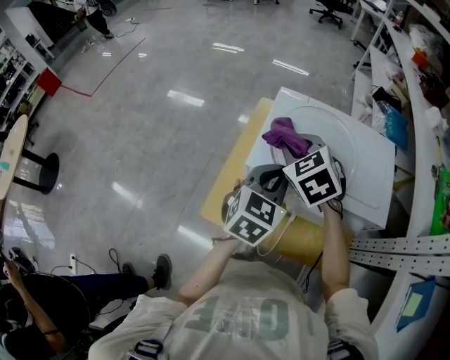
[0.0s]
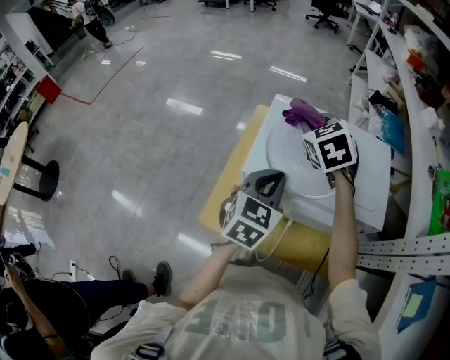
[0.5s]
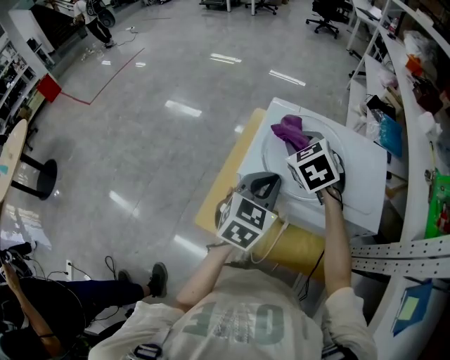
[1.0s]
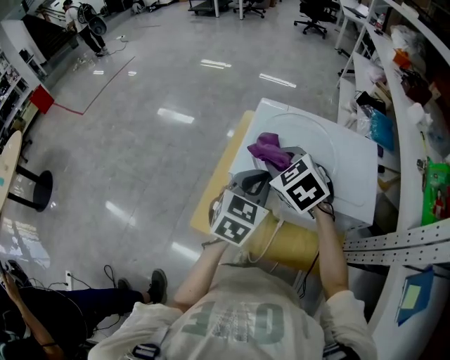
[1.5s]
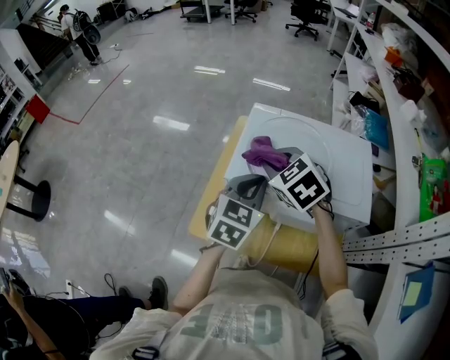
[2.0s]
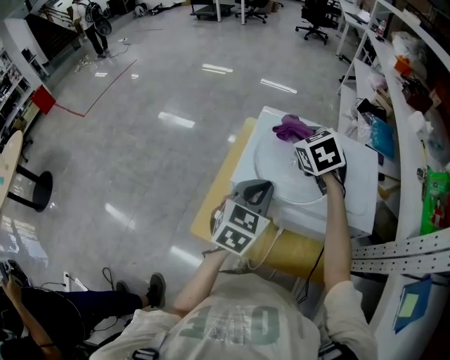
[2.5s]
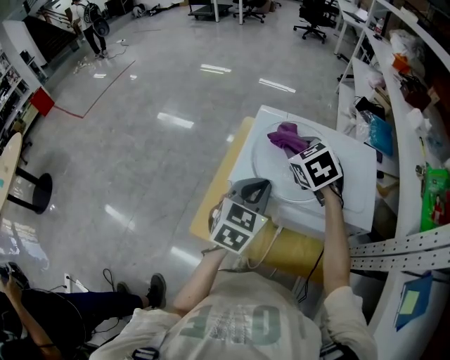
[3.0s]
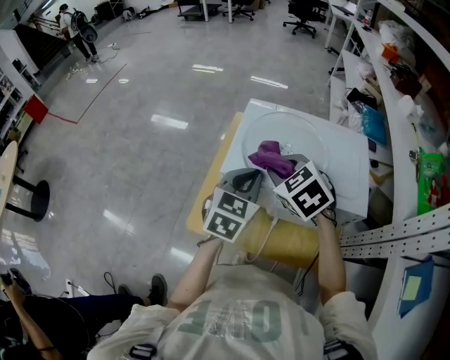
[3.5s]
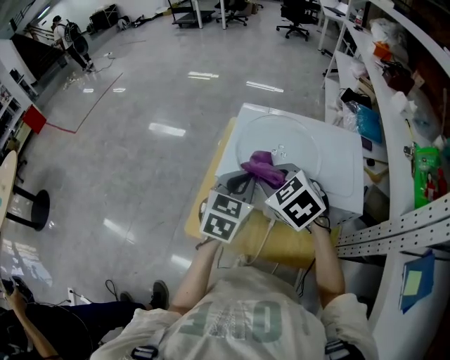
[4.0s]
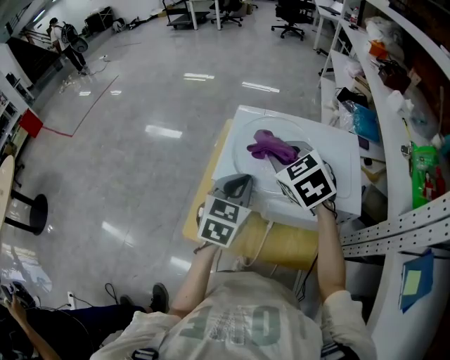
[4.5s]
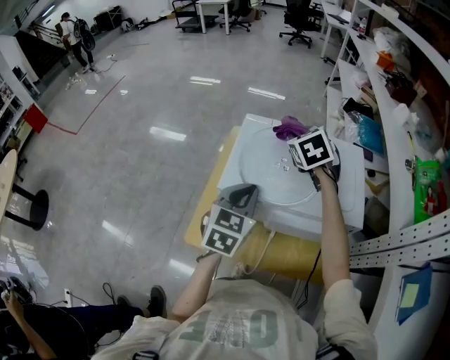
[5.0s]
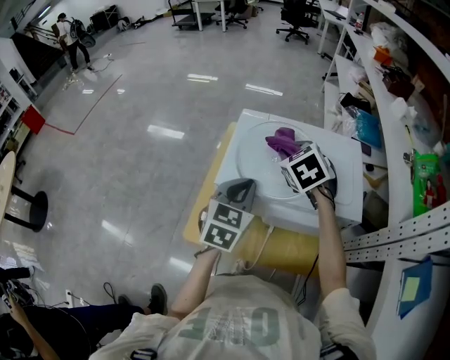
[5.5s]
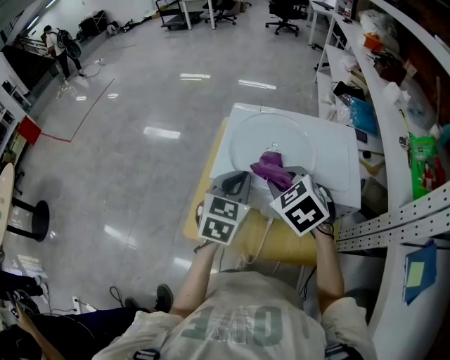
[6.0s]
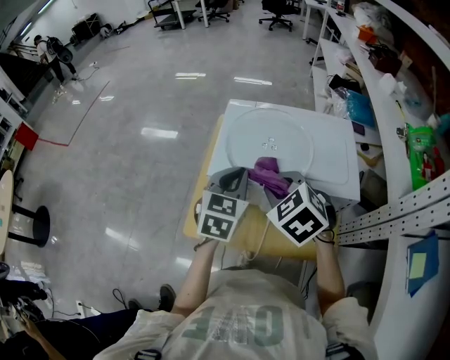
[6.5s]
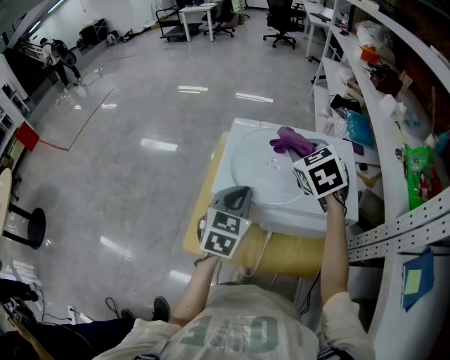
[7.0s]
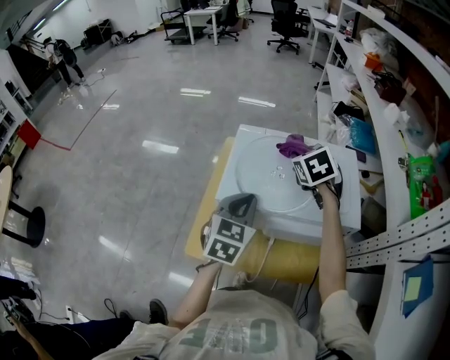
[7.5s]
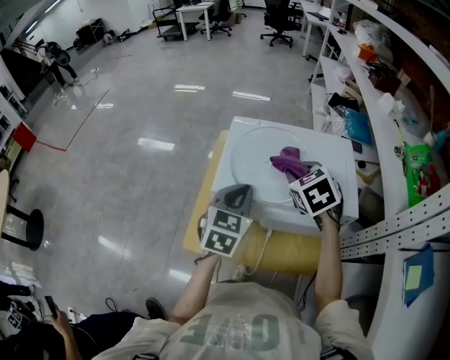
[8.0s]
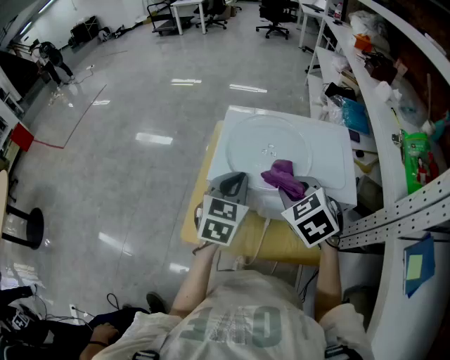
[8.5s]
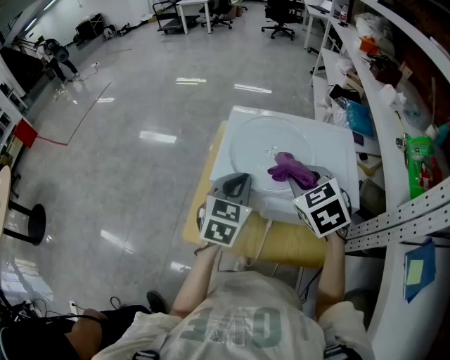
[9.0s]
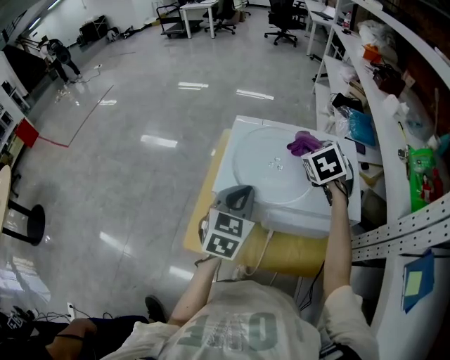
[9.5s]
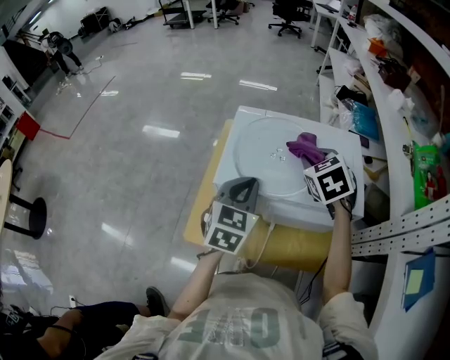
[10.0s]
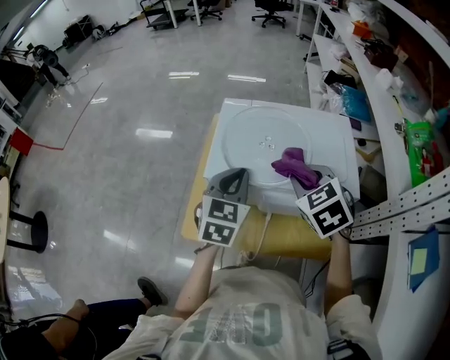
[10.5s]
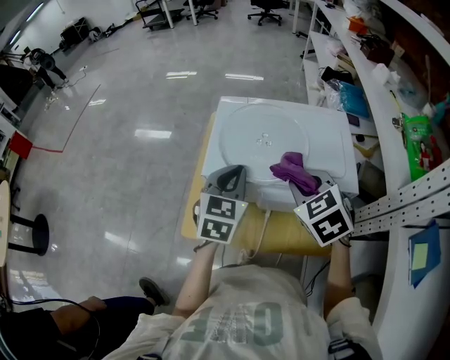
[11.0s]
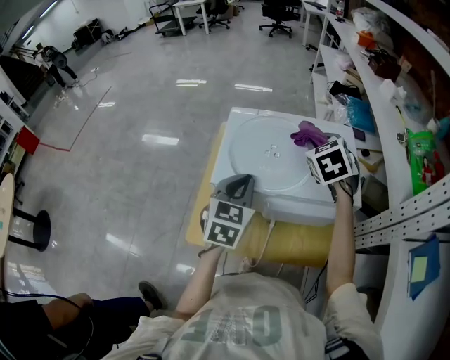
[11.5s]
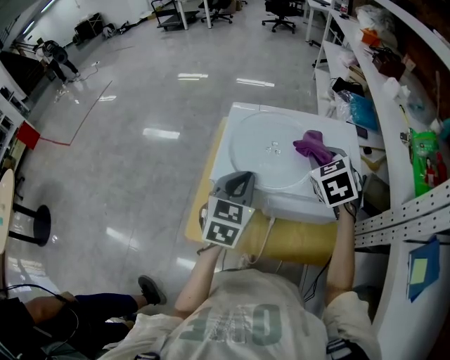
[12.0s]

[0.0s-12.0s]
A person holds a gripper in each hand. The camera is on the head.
0.0s to 2.0s: The right gripper moves about 10 cm forward and comes back.
2.0s to 4.0s: The right gripper reaches approximately 10 cm forward, then returns.
4.0s to 6.0s: The right gripper reaches approximately 20 cm forward, then returns.
6.0s to 8.0s: The right gripper moves forward and to the right, some 10 cm.
8.0s to 10.0s: The right gripper swings forward and backward, some 15 cm each way, with 2 reversals.
10.0s to 12.0s: The right gripper goes forward and backward, roughly 15 cm each way, reversing 2 times.

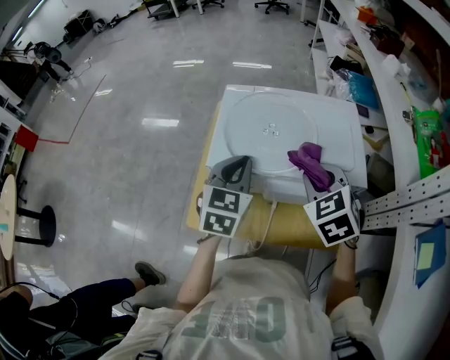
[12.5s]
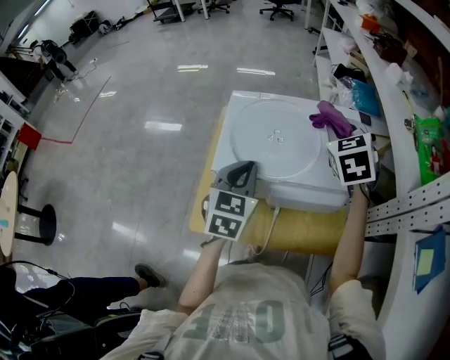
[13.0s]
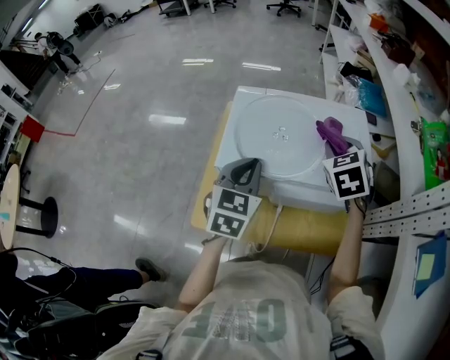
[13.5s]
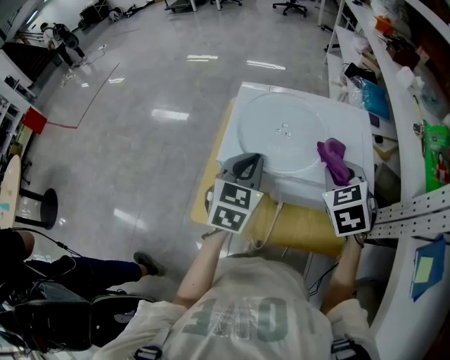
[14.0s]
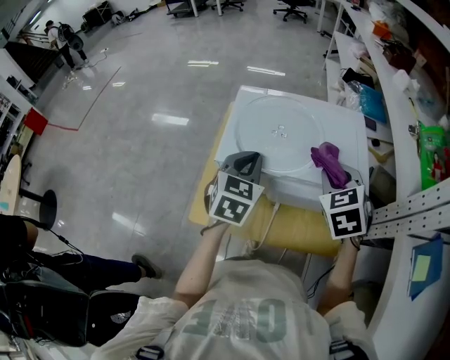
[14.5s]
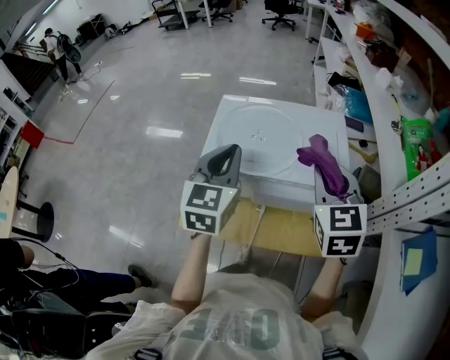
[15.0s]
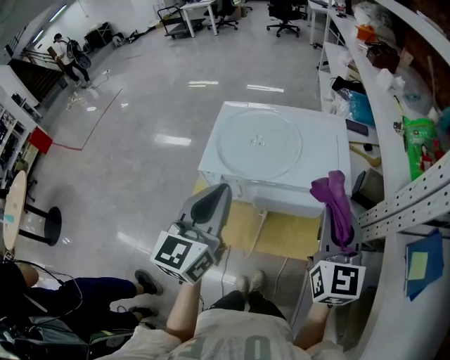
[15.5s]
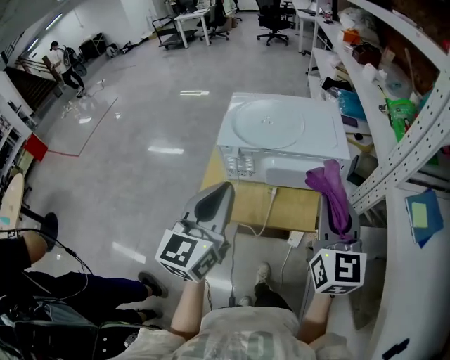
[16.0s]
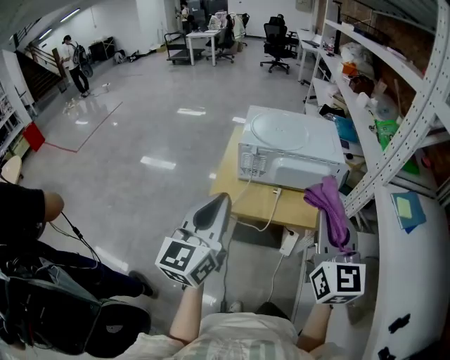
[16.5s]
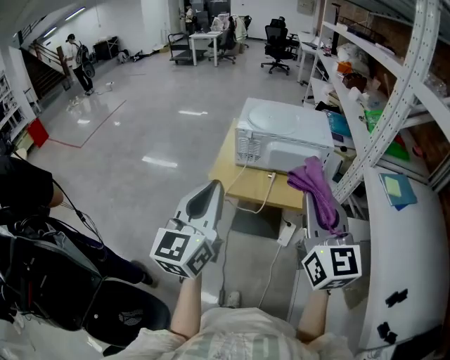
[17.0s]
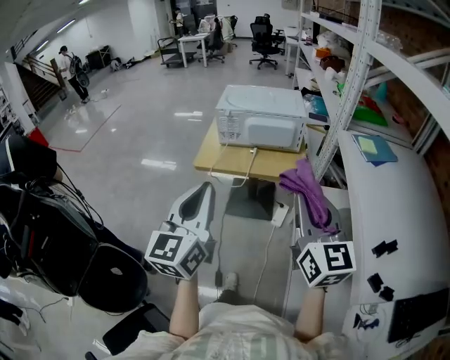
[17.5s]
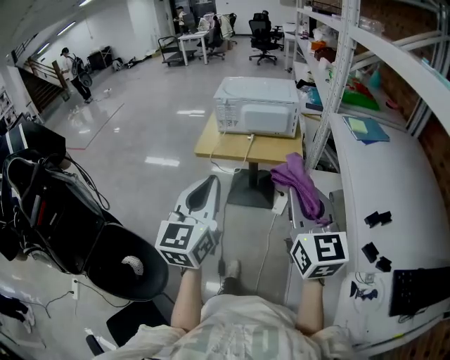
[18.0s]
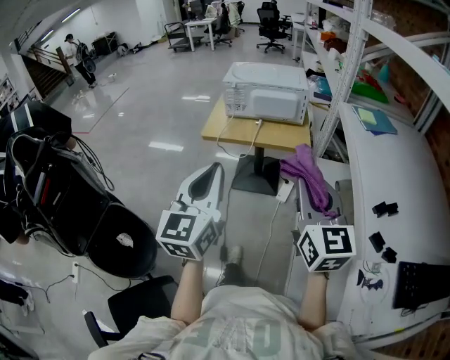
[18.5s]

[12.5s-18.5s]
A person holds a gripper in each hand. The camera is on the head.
12.5s to 14.5s: The right gripper goes forward and returns, approximately 15 cm each way.
14.5s to 16.5s: The grippers both shift backward and upward by approximately 40 cm. The right gripper tilts its fingers some 40 degrees upward. Meanwhile the left gripper tips its fingers upward by roughly 40 degrees.
16.5s to 18.5s: Both grippers move backward, approximately 30 cm.

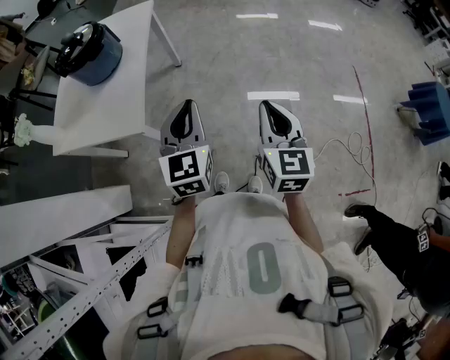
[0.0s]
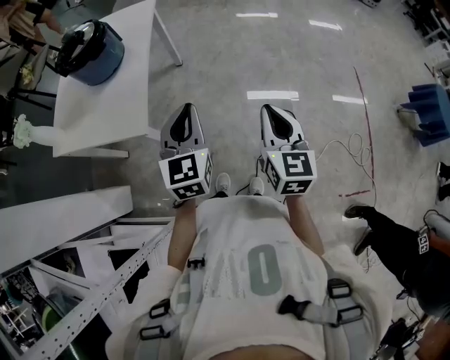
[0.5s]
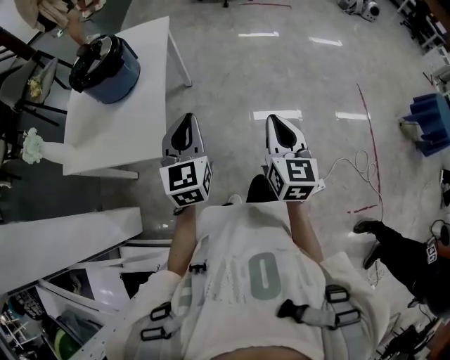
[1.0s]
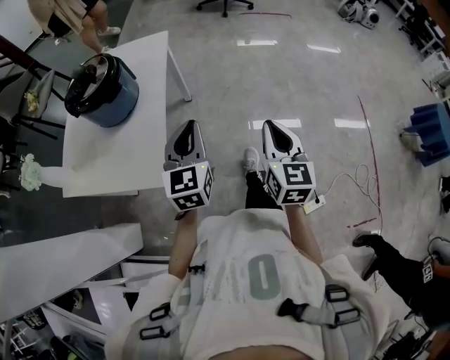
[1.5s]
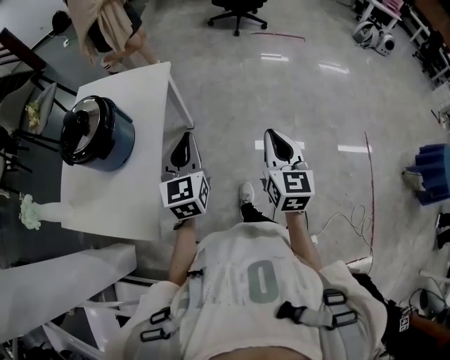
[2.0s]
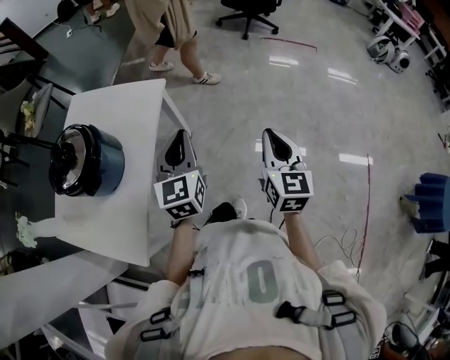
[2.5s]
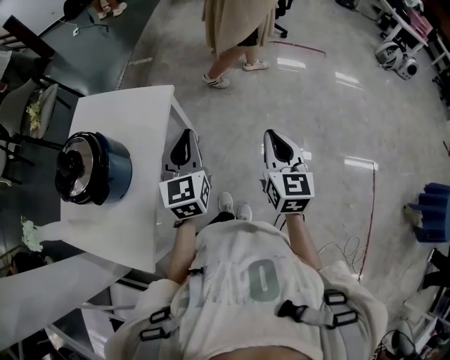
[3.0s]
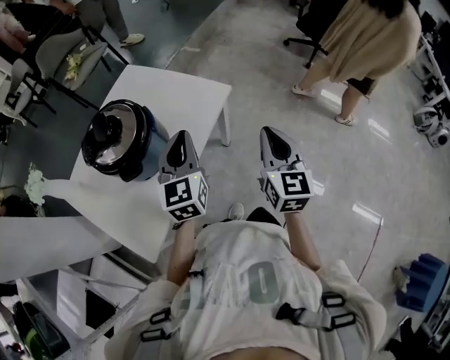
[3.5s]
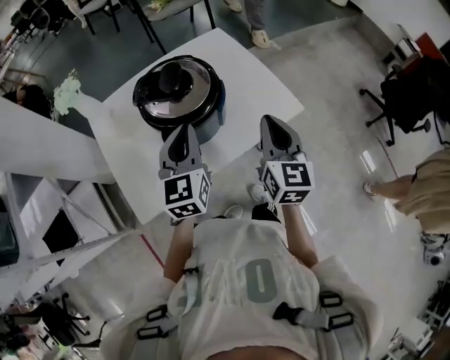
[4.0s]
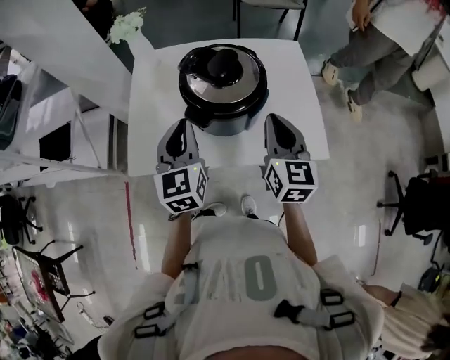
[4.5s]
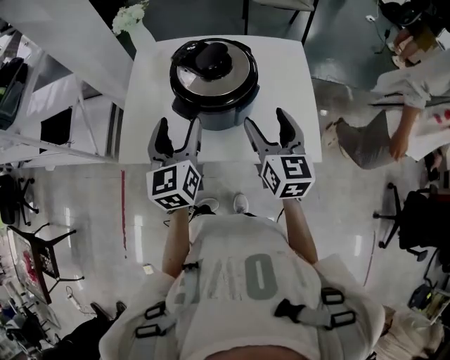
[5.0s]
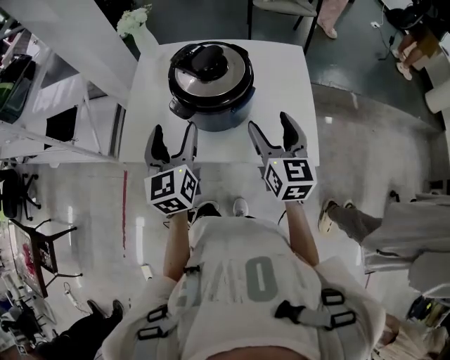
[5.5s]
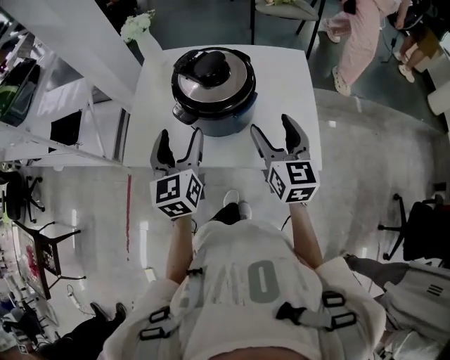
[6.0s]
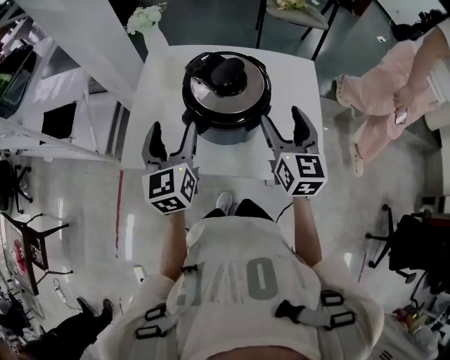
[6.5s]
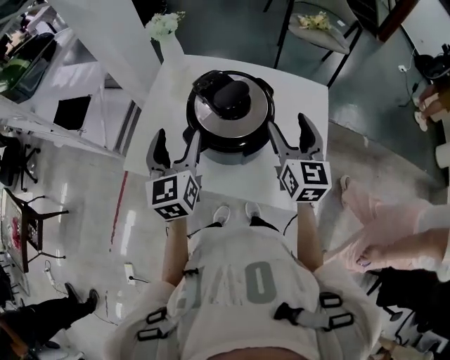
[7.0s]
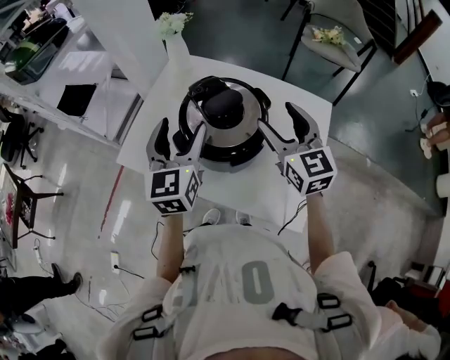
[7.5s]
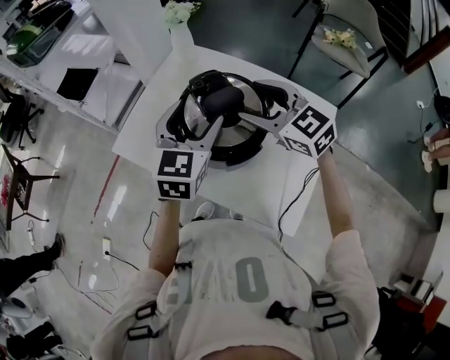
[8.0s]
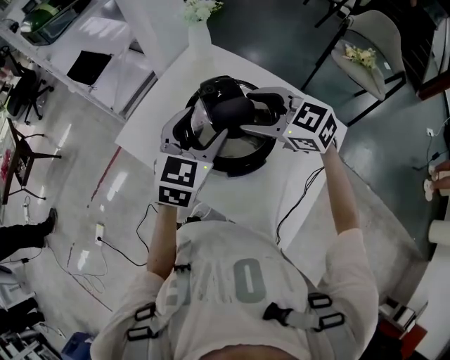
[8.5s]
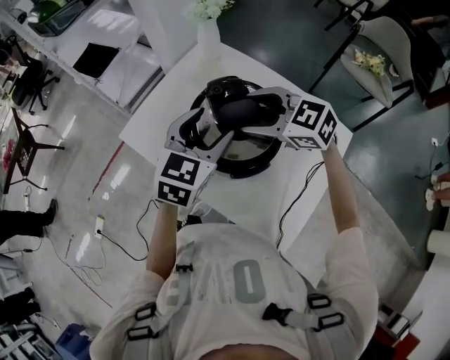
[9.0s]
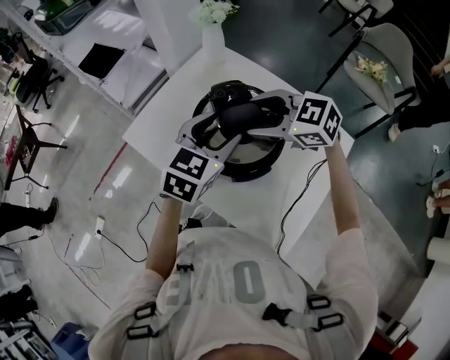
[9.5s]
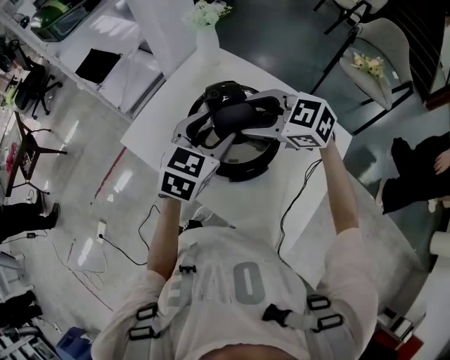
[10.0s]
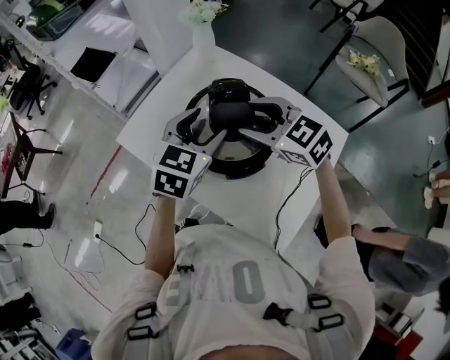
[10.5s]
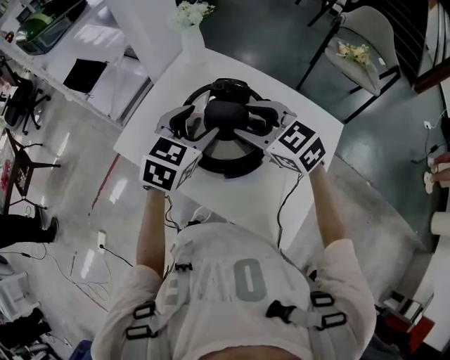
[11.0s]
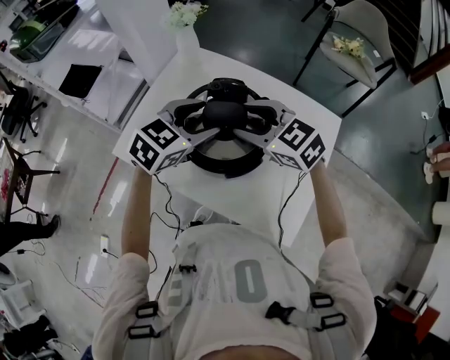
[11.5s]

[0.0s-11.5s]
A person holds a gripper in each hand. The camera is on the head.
0.0s to 2.0s: The two grippers go approximately 35 cm forward.
2.0s to 4.0s: The left gripper changes place by approximately 30 cm, and rotates approximately 50 degrees; the right gripper ends up approximately 40 cm from where it was, and changes its angle by about 60 degrees.
4.0s to 6.0s: The left gripper changes place by approximately 5 cm, turns by approximately 40 degrees, and opens its fingers, while the right gripper moves roughly 10 cm, rotates approximately 40 degrees, and opens its fingers.
6.0s to 7.5s: The left gripper is displaced forward by about 10 cm, while the right gripper is displaced forward by some 15 cm, and changes its angle by about 30 degrees.
7.5s to 9.5s: The right gripper shifts by about 15 cm, and swivels about 70 degrees; the left gripper changes place by approximately 10 cm, and turns by roughly 20 degrees.
9.5s to 11.5s: The right gripper changes its angle by about 30 degrees. The left gripper turns by roughly 30 degrees.
